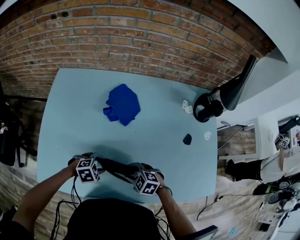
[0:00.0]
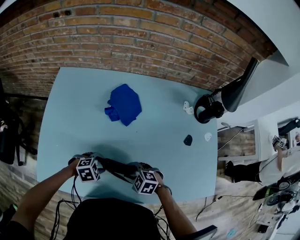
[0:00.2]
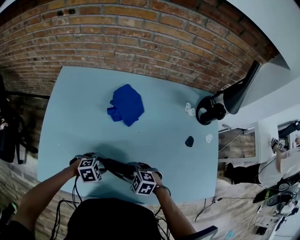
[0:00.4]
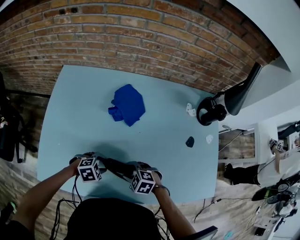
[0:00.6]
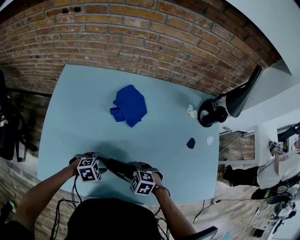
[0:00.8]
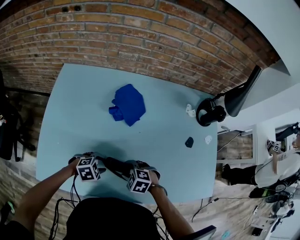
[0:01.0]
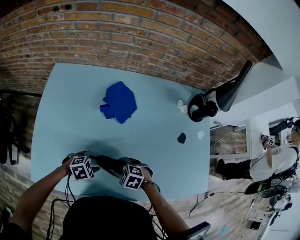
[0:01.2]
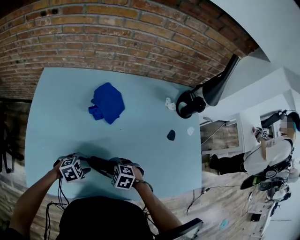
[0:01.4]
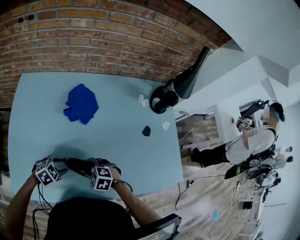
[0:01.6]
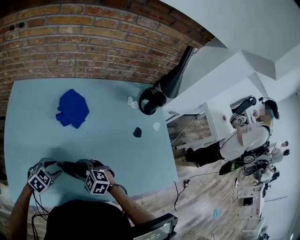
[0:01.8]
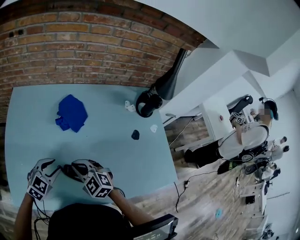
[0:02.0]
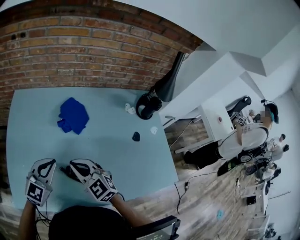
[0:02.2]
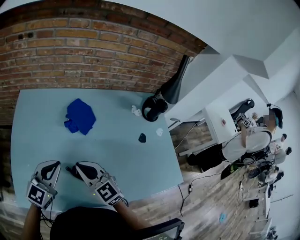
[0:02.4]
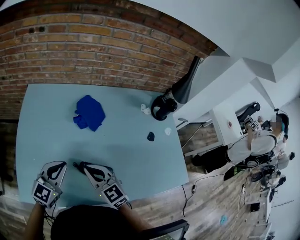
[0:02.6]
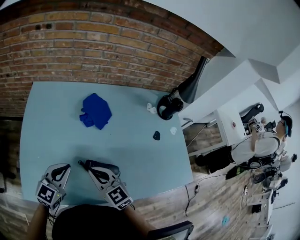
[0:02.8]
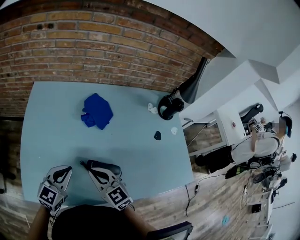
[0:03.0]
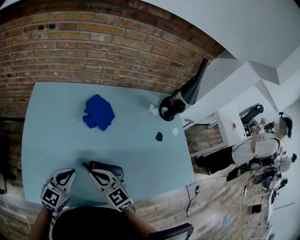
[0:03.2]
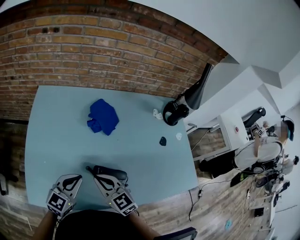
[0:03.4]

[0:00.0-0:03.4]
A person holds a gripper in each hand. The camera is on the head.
0:00.0 to 0:01.6: The right gripper ends up approximately 5 cm from where it was.
0:01.6 to 0:03.4: The grippers both shift upward by about 15 cm. The left gripper tips its fingers upward by roughly 40 degrees, and closes its fingers, while the right gripper points its fingers some 40 degrees further upward, and closes up.

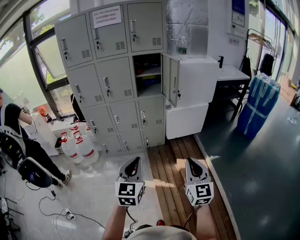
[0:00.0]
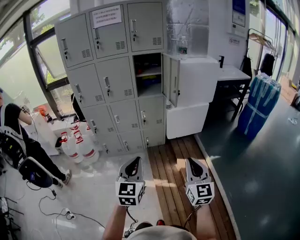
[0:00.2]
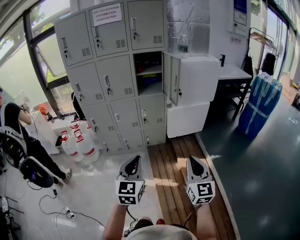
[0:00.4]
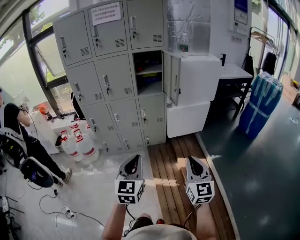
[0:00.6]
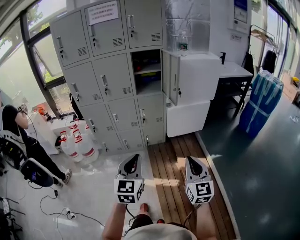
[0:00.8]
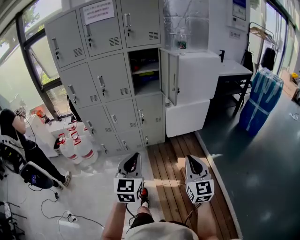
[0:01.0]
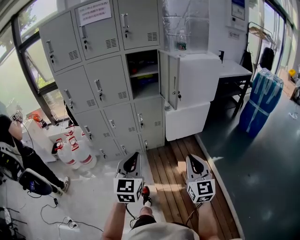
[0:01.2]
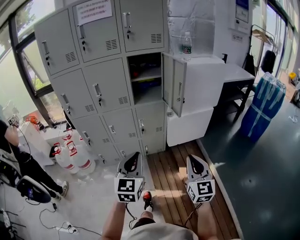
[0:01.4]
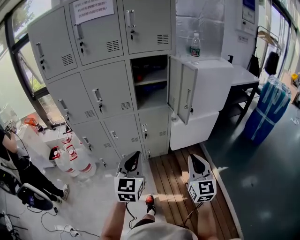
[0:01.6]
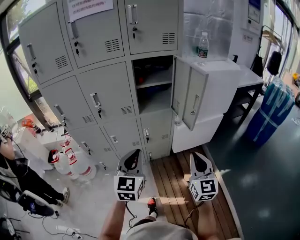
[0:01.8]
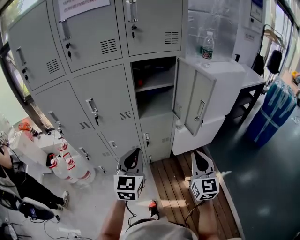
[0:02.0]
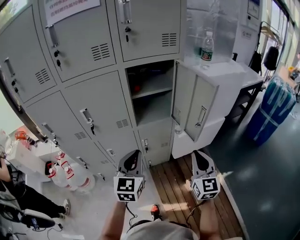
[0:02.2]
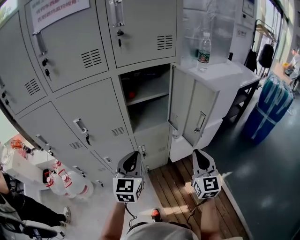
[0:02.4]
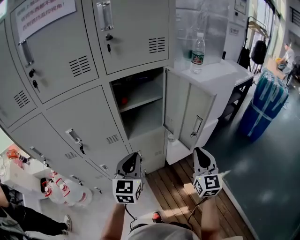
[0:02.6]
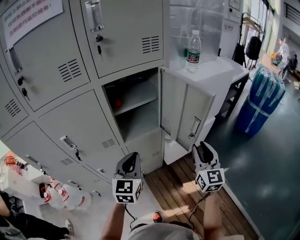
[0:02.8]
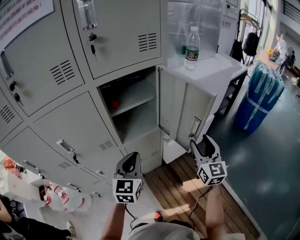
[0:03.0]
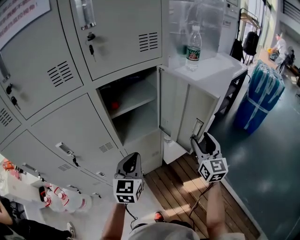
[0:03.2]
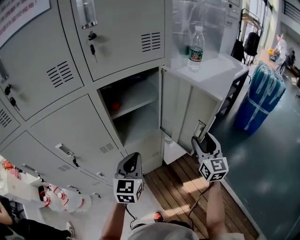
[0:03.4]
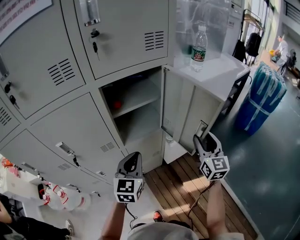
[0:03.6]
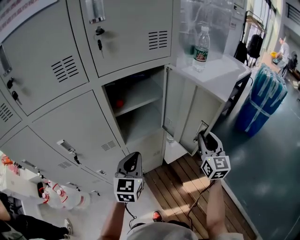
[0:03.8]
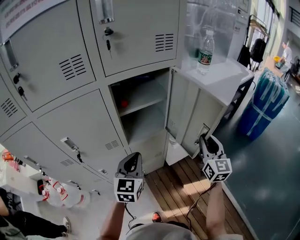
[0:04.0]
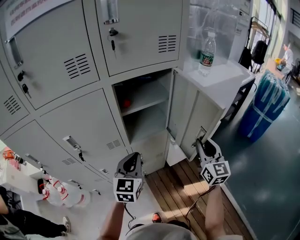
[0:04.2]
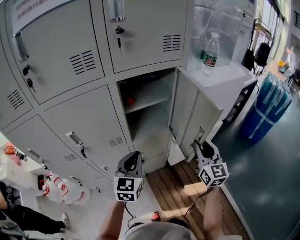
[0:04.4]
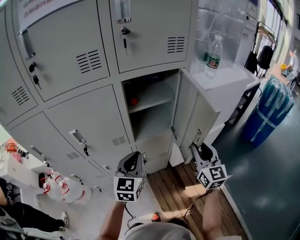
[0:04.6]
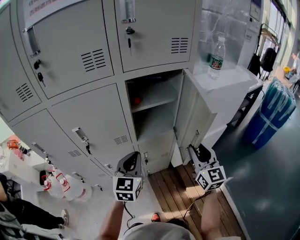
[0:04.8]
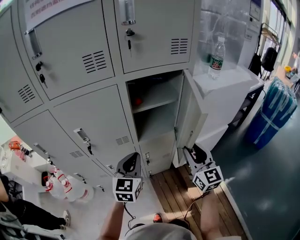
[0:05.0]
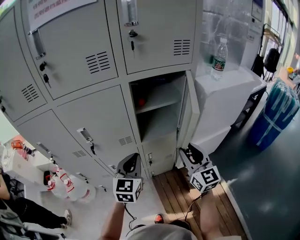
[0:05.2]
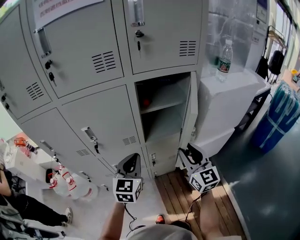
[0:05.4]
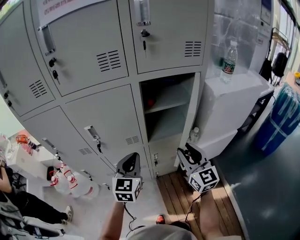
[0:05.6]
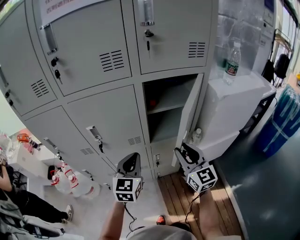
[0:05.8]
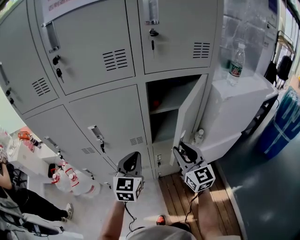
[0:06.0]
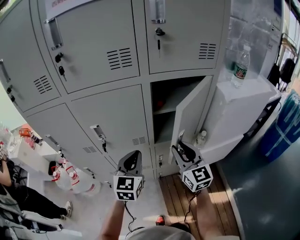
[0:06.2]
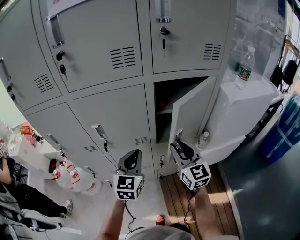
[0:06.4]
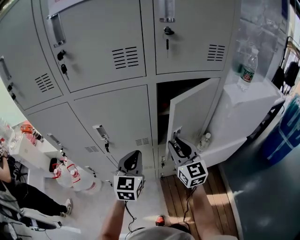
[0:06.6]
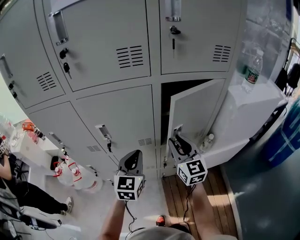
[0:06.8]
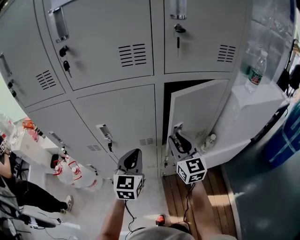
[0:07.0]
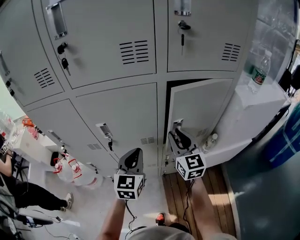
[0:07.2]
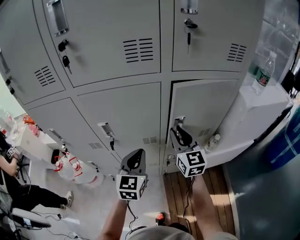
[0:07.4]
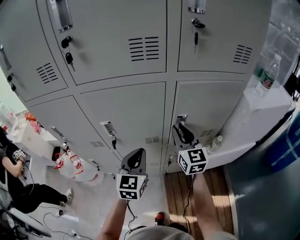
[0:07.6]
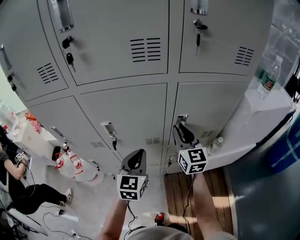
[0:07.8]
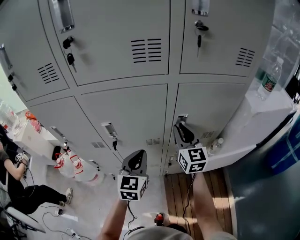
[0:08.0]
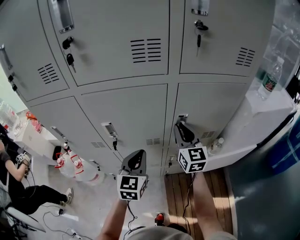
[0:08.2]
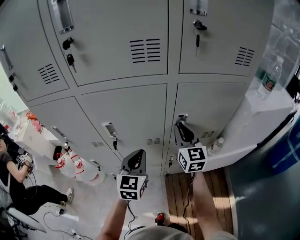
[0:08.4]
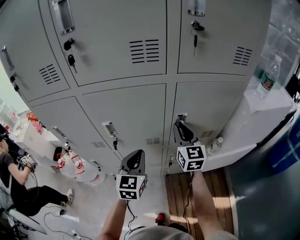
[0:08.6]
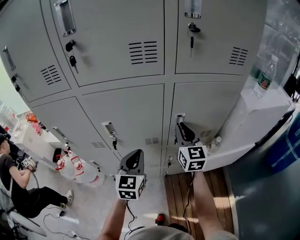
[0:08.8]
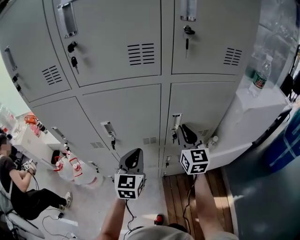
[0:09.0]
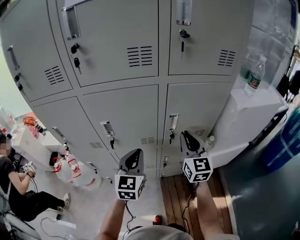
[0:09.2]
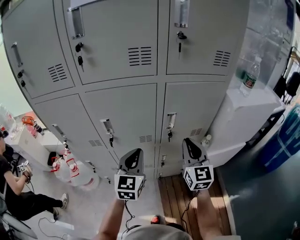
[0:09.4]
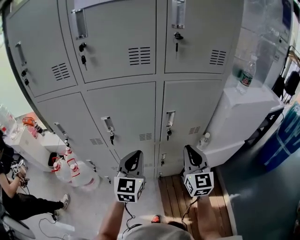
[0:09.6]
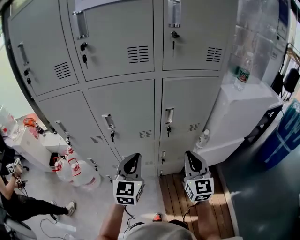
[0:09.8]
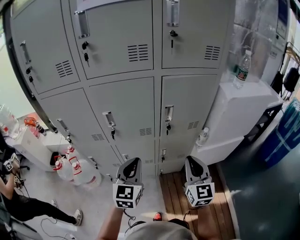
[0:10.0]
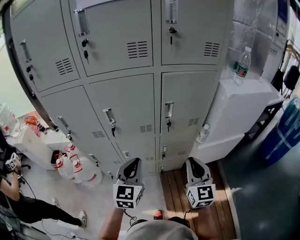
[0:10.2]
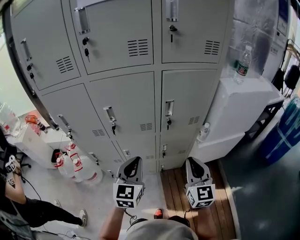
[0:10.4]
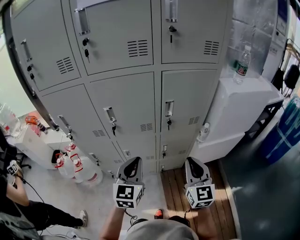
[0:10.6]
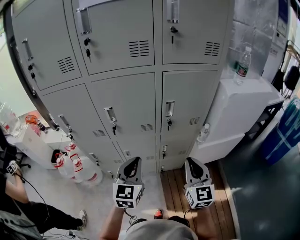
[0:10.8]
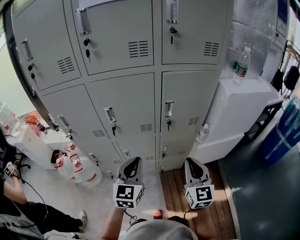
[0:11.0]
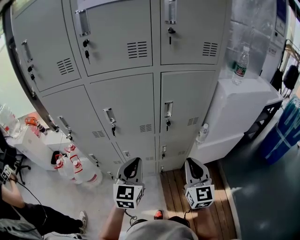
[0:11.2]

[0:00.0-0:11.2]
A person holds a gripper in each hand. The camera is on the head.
0:00.0 to 0:01.6: The two grippers go some 25 cm forward.
0:01.6 to 0:03.2: The grippers both shift forward by roughly 35 cm. The right gripper opens its fingers.
0:03.2 to 0:04.8: The right gripper heads to the left, covering approximately 10 cm, and closes up. Meanwhile the left gripper goes roughly 5 cm to the left.
0:04.8 to 0:06.4: The left gripper moves to the left, some 10 cm, while the right gripper goes some 20 cm to the left and forward.
0:06.4 to 0:08.0: The right gripper moves forward, roughly 10 cm, while the left gripper moves some 5 cm.
0:08.0 to 0:09.6: The left gripper travels backward by roughly 10 cm; the right gripper shifts some 15 cm backward.
0:09.6 to 0:11.2: The grippers both shift backward by some 10 cm.

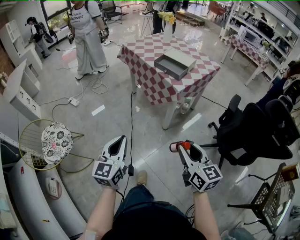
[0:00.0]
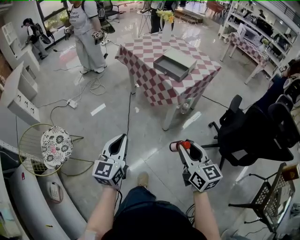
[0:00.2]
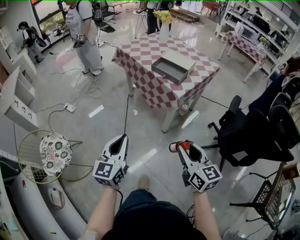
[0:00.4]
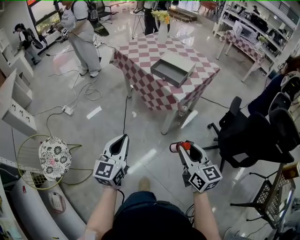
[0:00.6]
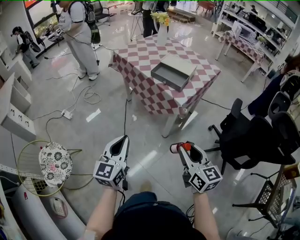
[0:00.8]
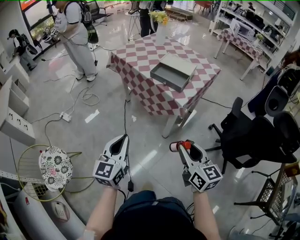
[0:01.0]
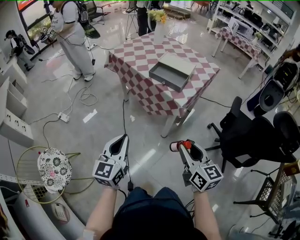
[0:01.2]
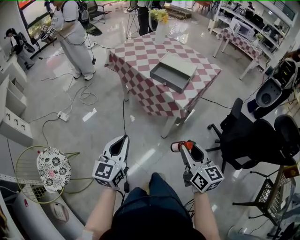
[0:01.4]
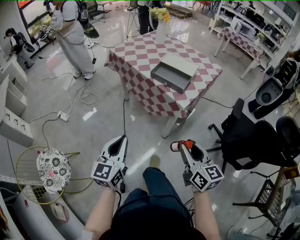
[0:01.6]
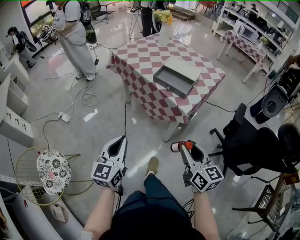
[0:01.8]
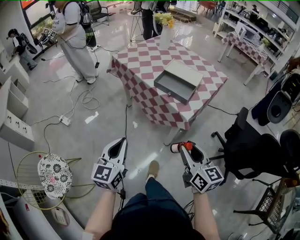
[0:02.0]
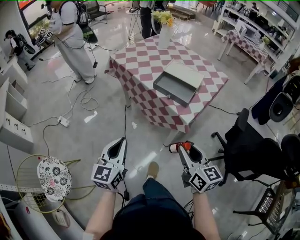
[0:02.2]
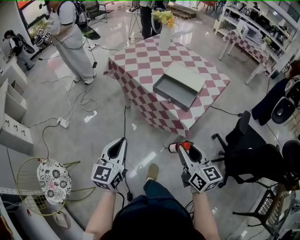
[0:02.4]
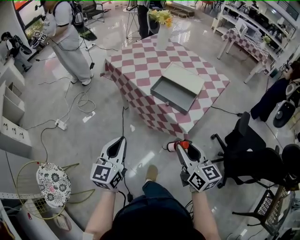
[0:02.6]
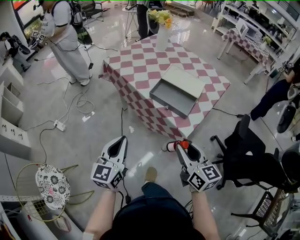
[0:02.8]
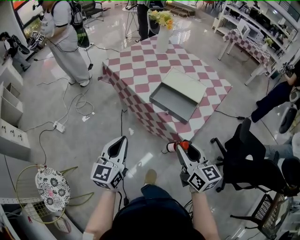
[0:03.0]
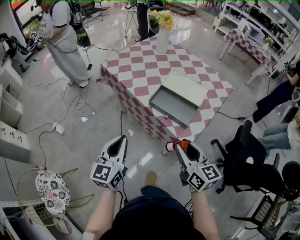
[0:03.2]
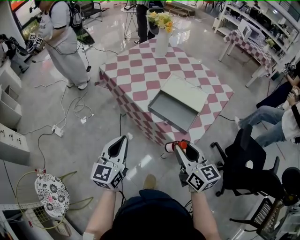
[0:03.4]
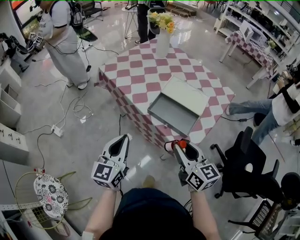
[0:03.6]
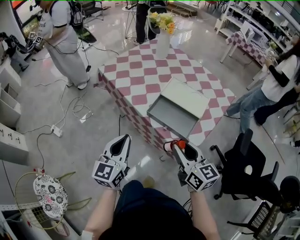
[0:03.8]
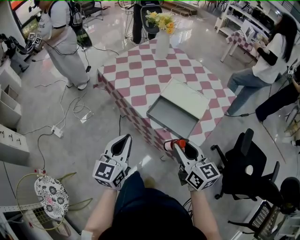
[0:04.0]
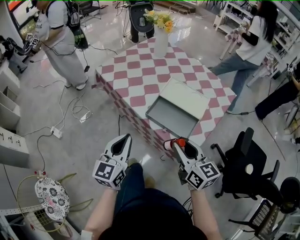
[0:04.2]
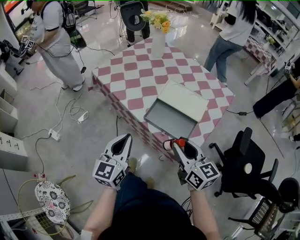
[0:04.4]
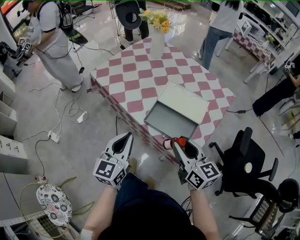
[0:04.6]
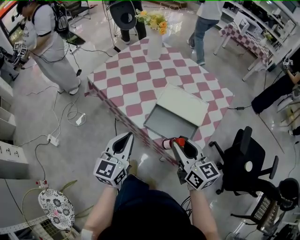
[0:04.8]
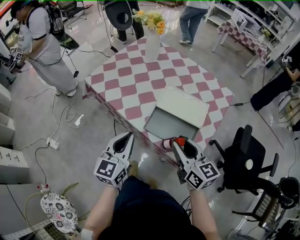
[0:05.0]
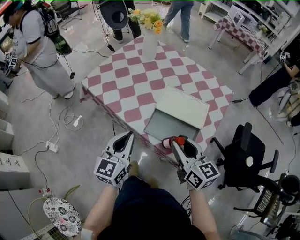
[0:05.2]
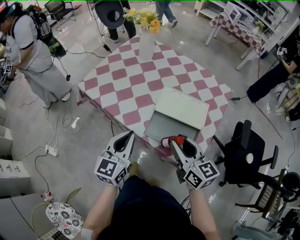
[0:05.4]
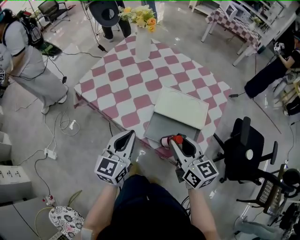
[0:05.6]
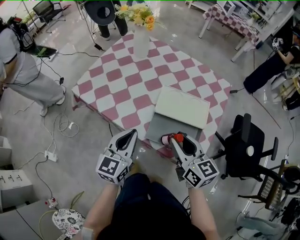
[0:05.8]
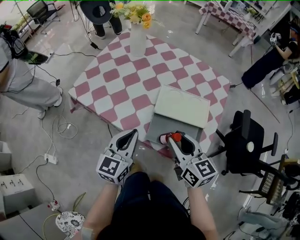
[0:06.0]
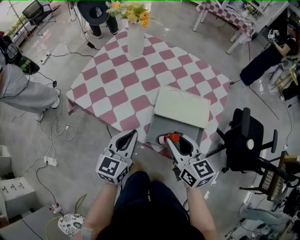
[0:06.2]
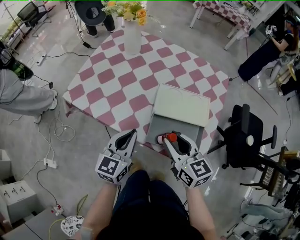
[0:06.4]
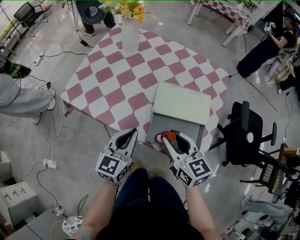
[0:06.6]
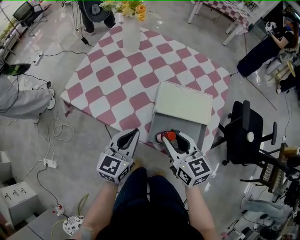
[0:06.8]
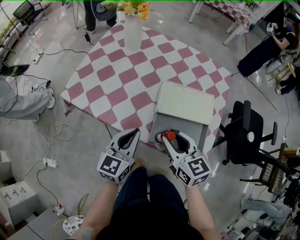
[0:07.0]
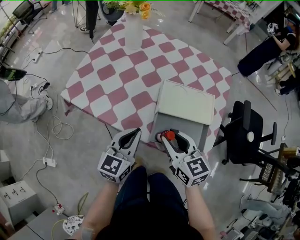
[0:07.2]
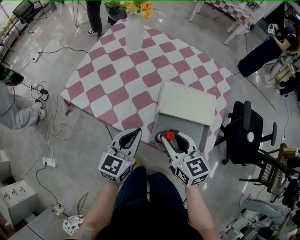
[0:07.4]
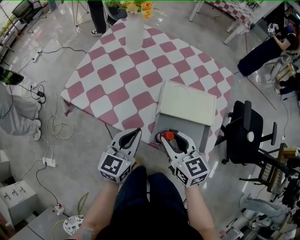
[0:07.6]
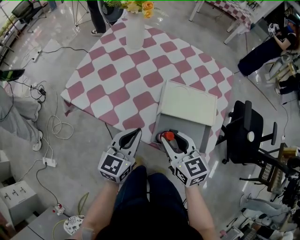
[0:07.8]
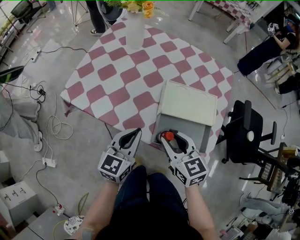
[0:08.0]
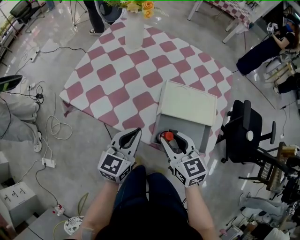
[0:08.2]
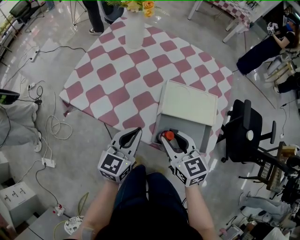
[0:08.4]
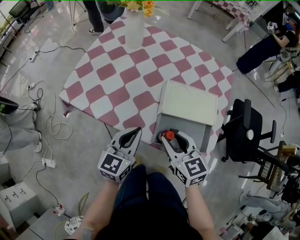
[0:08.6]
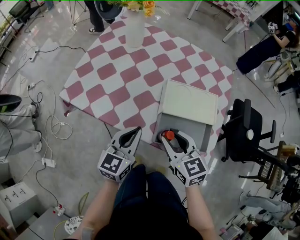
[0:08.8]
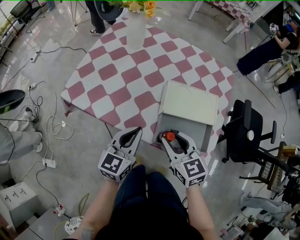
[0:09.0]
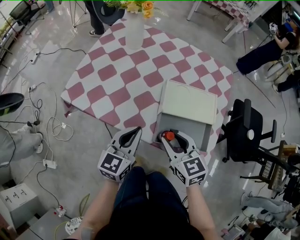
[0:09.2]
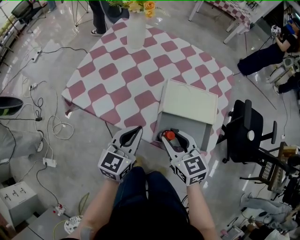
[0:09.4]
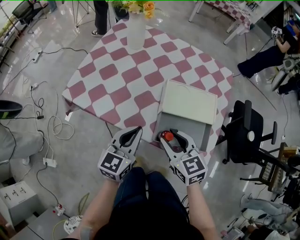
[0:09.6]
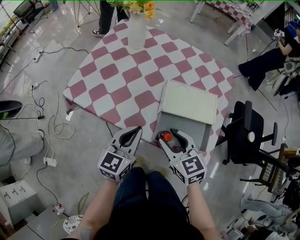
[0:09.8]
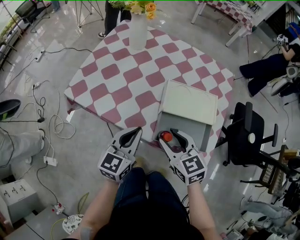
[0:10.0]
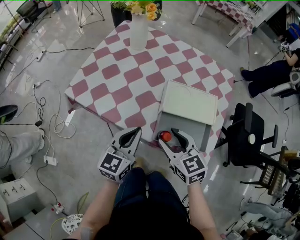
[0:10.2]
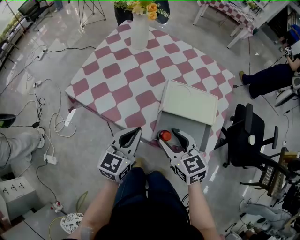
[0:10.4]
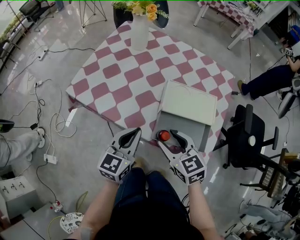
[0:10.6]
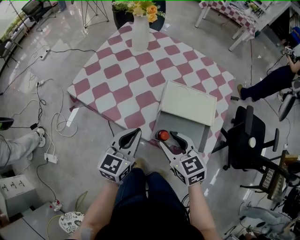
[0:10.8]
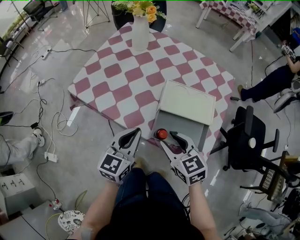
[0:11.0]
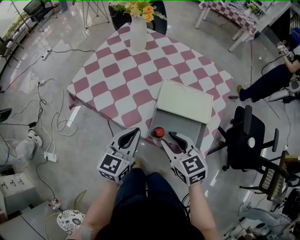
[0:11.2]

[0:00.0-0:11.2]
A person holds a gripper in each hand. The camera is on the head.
0:00.0 to 0:01.6: Both grippers move forward, approximately 20 cm.
0:01.6 to 0:03.2: The two grippers go some 25 cm forward.
0:03.2 to 0:04.8: The grippers both shift forward by approximately 15 cm.
0:04.8 to 0:06.4: The left gripper heads forward and downward, covering approximately 15 cm, and rotates about 20 degrees. Meanwhile the right gripper travels forward and to the left by roughly 10 cm.
0:06.4 to 0:08.0: The right gripper shifts by roughly 5 cm.
0:08.0 to 0:11.2: The grippers move only a little.
